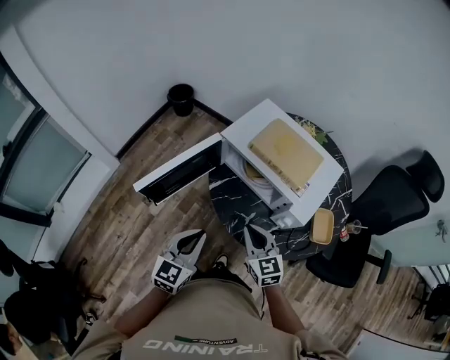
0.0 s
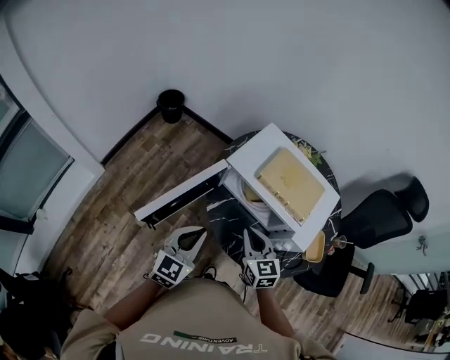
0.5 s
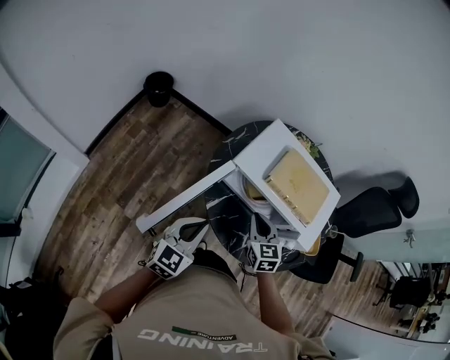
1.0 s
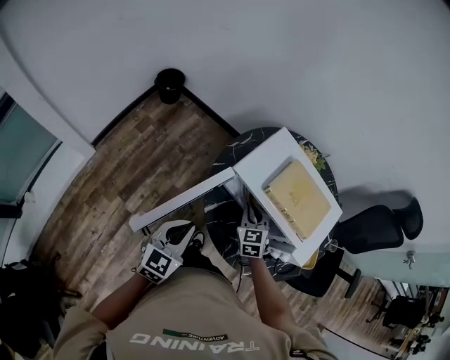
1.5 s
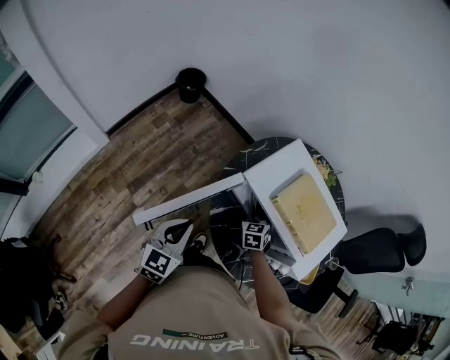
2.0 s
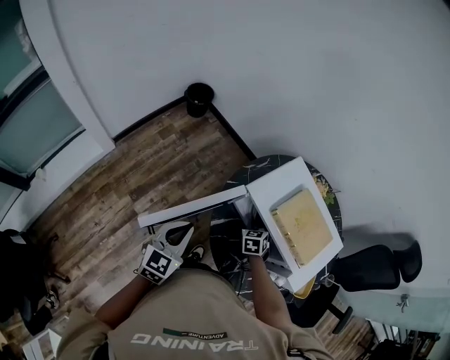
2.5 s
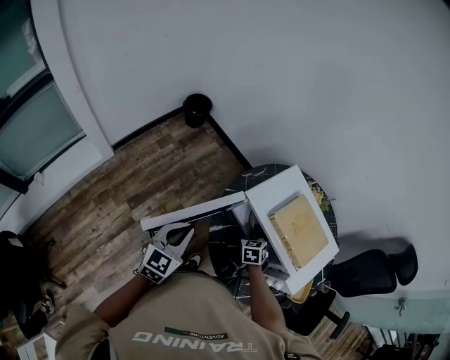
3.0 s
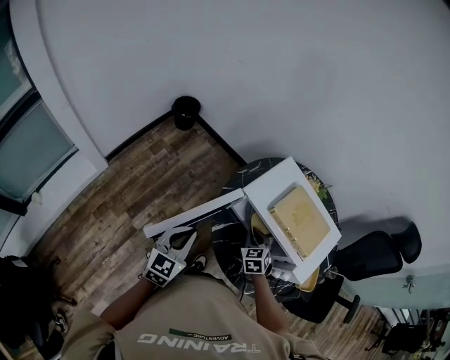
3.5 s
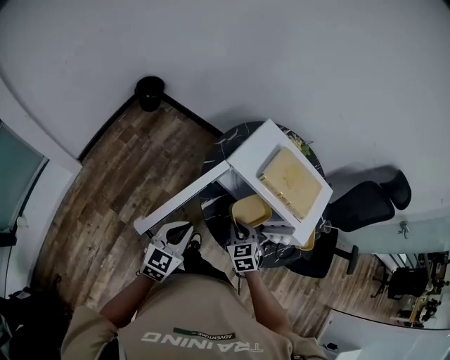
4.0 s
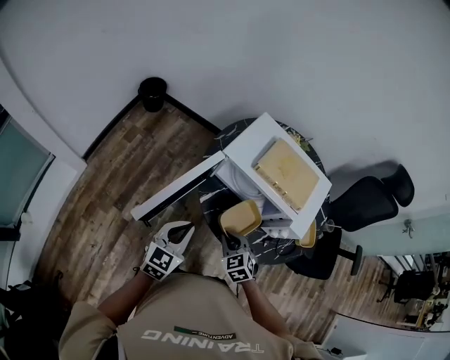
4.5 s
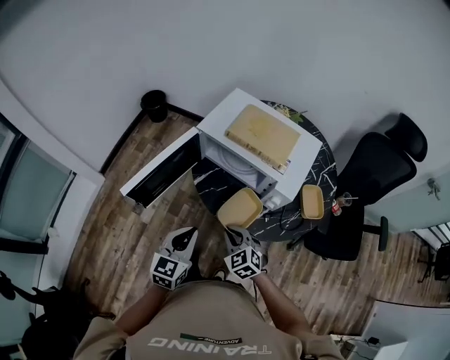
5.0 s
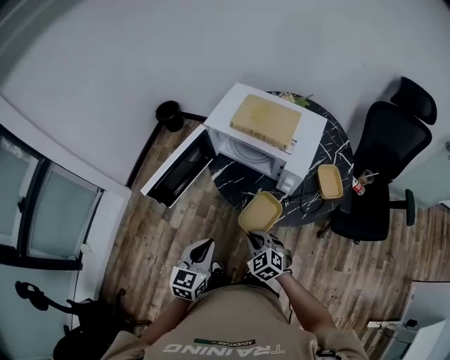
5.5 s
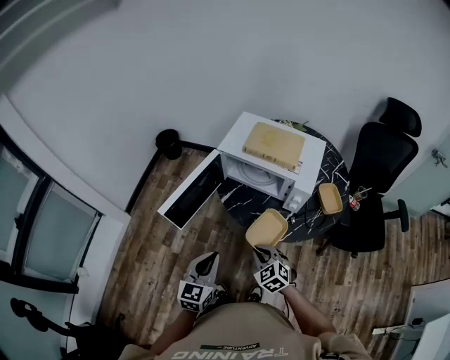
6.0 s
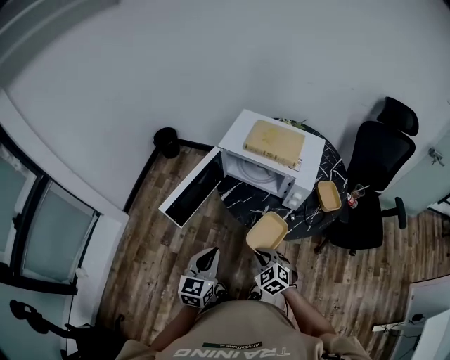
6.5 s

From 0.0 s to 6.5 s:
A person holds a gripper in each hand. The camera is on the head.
From 0.0 s to 2.0 s: The left gripper travels forward and to the left by approximately 20 cm, while the right gripper shifts roughly 25 cm forward and downward, and changes its angle by approximately 30 degrees.
From 2.0 s to 4.5 s: The left gripper shifts approximately 5 cm backward, while the right gripper goes approximately 20 cm backward.
From 4.5 s to 6.5 s: Both grippers move backward, some 15 cm.

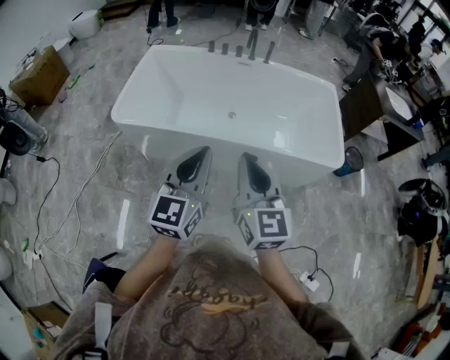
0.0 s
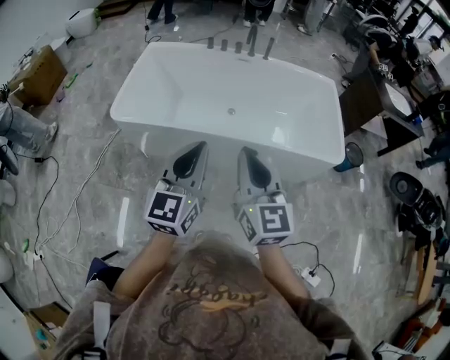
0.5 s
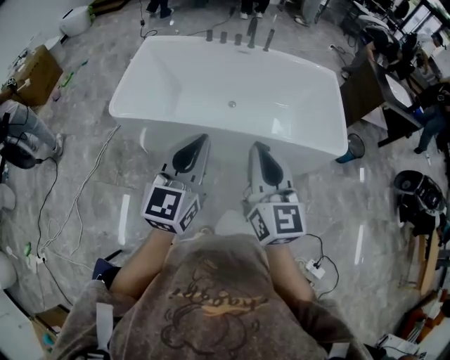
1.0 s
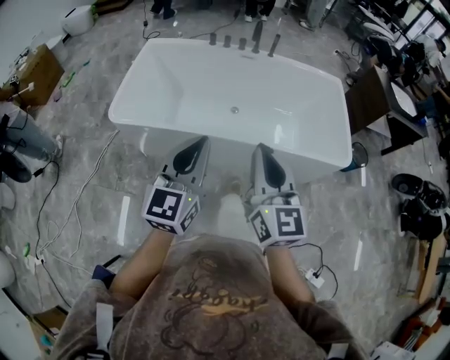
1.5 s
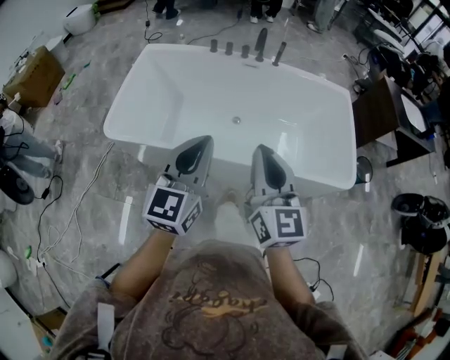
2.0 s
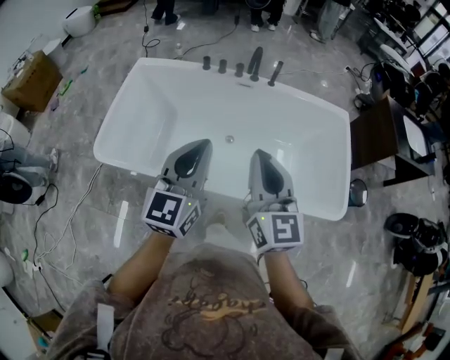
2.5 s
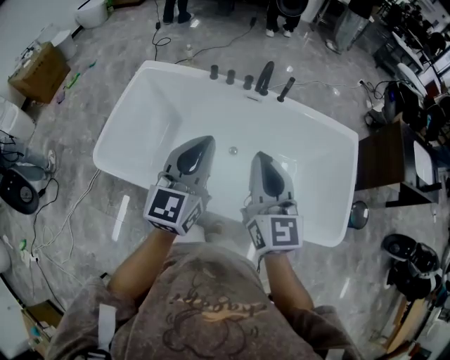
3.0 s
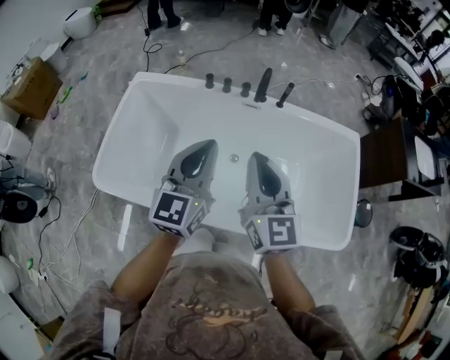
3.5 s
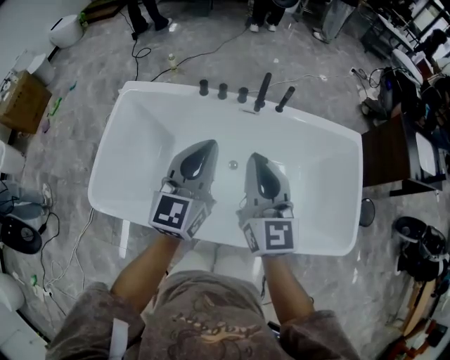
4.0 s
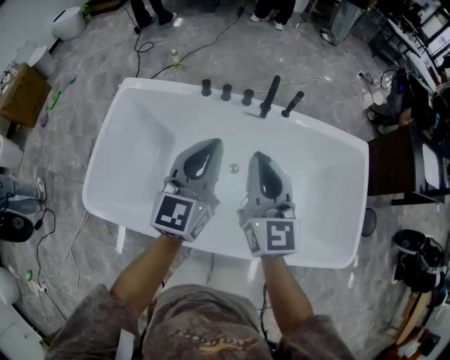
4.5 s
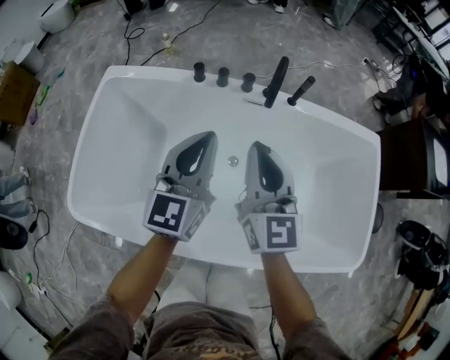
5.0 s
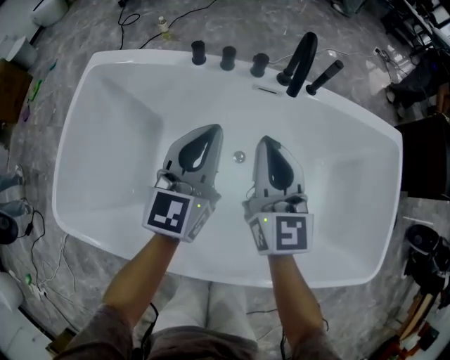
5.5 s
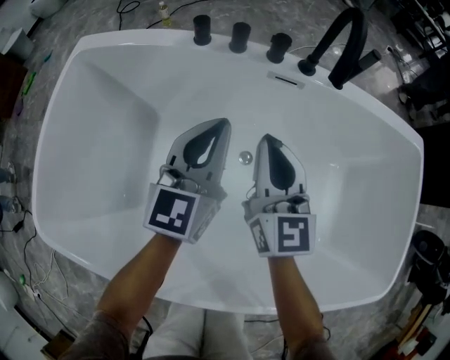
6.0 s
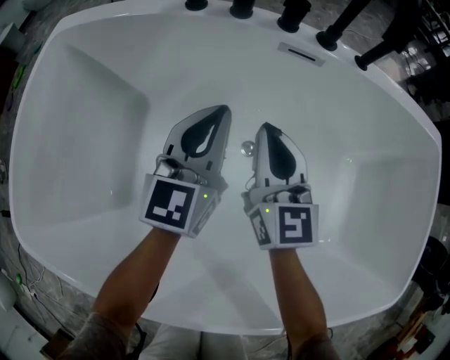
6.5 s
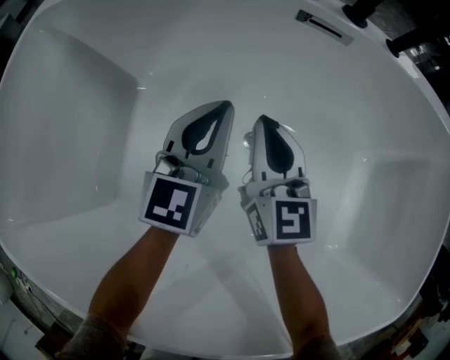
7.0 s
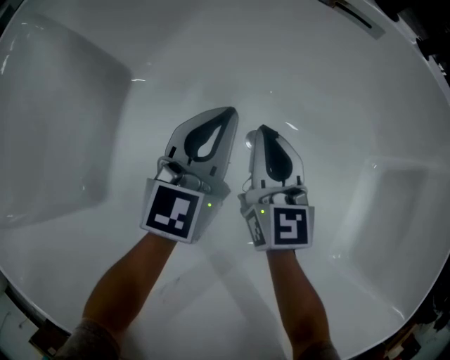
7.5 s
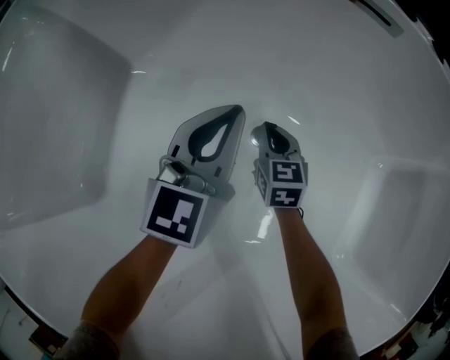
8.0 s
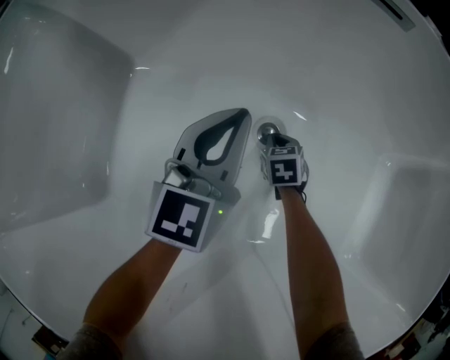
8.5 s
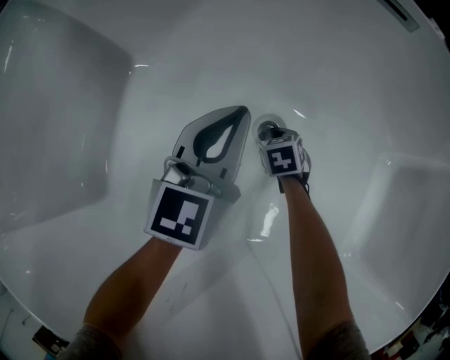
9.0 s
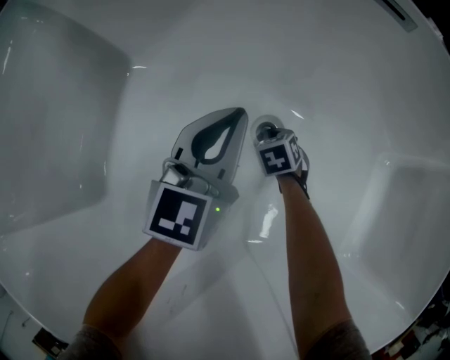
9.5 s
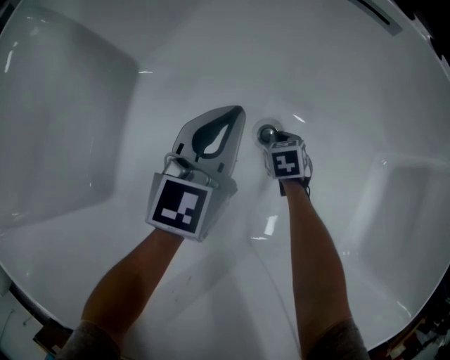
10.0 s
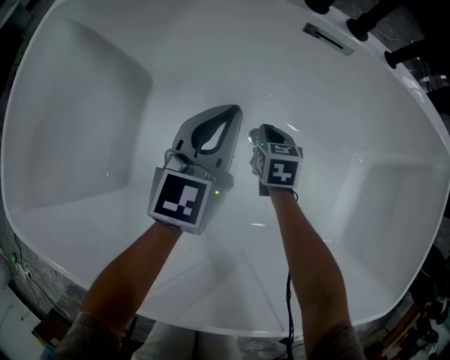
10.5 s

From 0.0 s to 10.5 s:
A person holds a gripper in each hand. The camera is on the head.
From 0.0 s to 2.0 s: Both grippers move forward, approximately 15 cm.
From 2.0 s to 4.0 s: Both grippers move forward, about 35 cm.
From 4.0 s to 6.5 s: Both grippers move downward and forward, roughly 50 cm.
From 6.5 s to 8.5 s: The left gripper travels downward by approximately 20 cm. Meanwhile the right gripper goes some 50 cm downward, and tilts its fingers about 50 degrees downward.
From 8.5 s to 10.5 s: The left gripper heads upward, covering some 15 cm. The right gripper heads upward, covering roughly 20 cm.

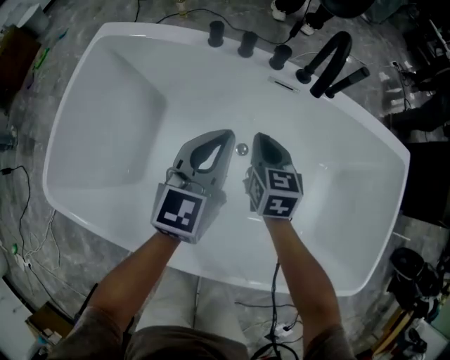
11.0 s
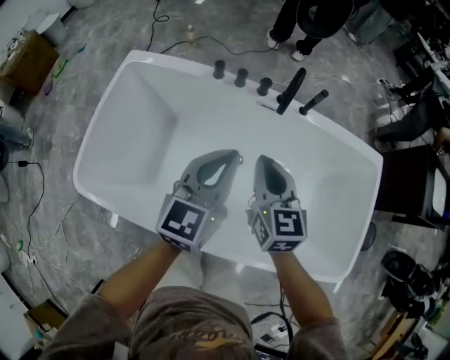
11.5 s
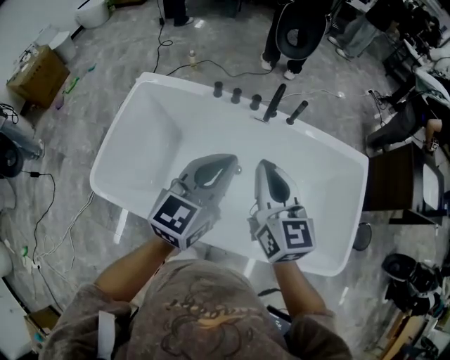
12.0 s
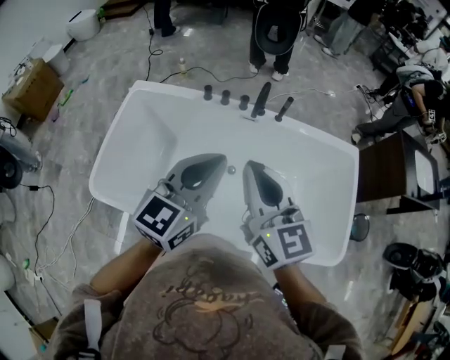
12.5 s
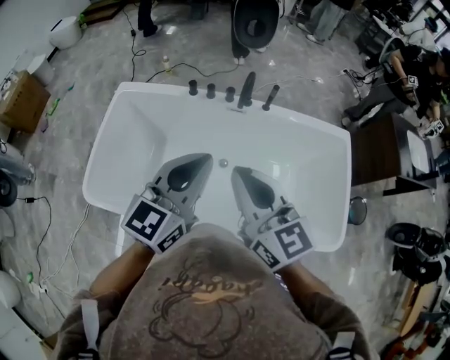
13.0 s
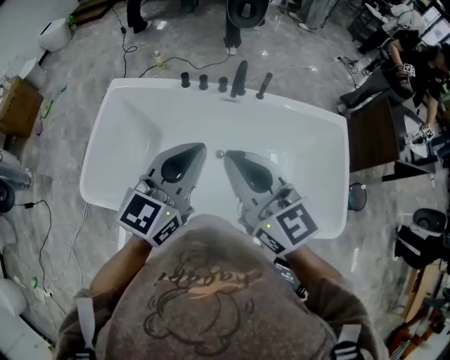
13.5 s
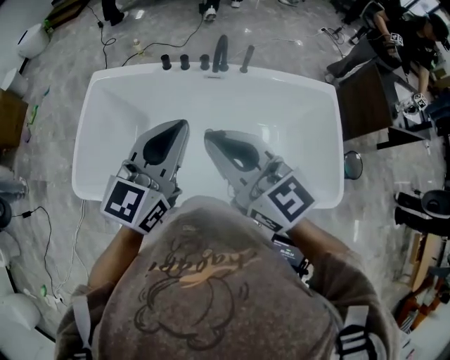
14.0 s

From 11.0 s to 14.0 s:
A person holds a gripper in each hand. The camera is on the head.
From 11.0 s to 12.5 s: The grippers both shift upward and backward by approximately 40 cm. The right gripper angles its fingers upward, by about 30 degrees.
From 12.5 s to 14.0 s: The right gripper changes place by roughly 5 cm.

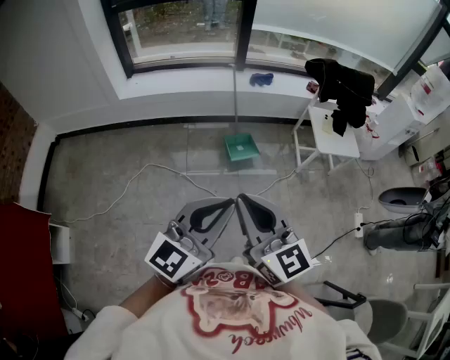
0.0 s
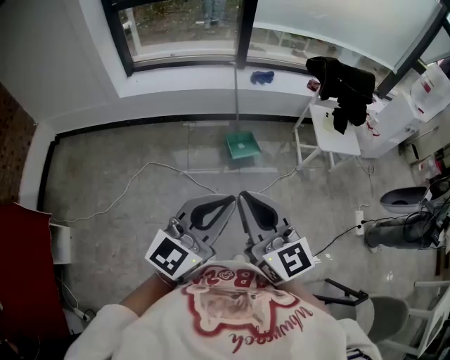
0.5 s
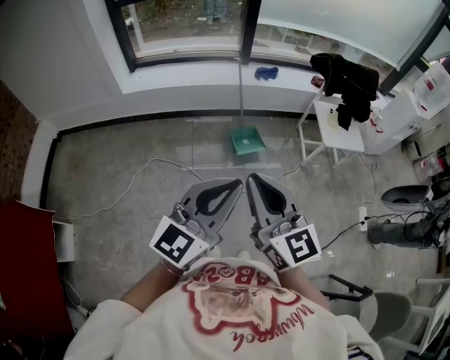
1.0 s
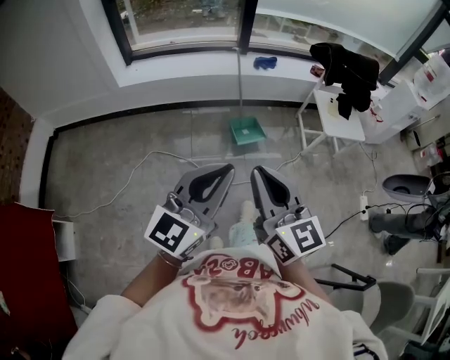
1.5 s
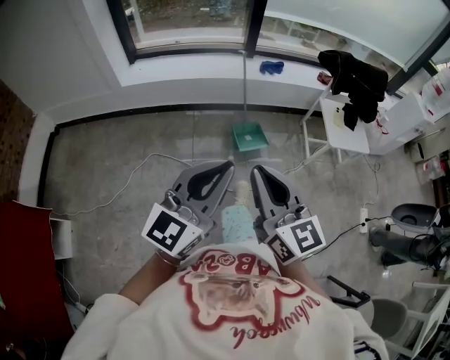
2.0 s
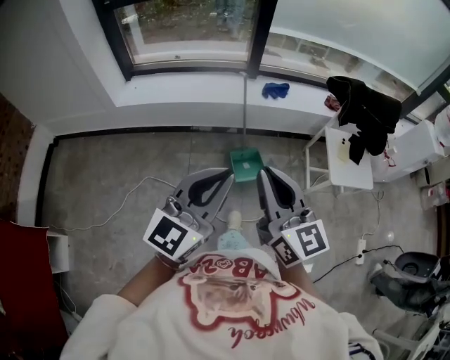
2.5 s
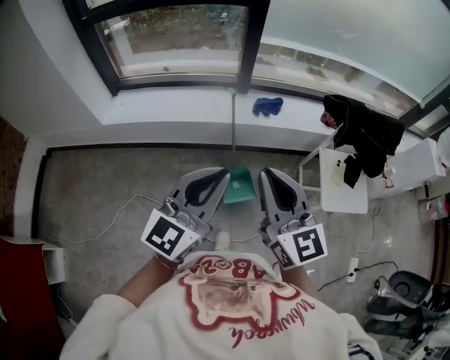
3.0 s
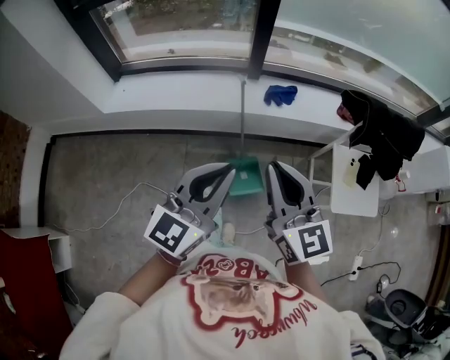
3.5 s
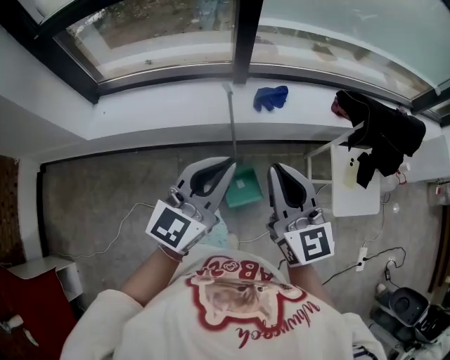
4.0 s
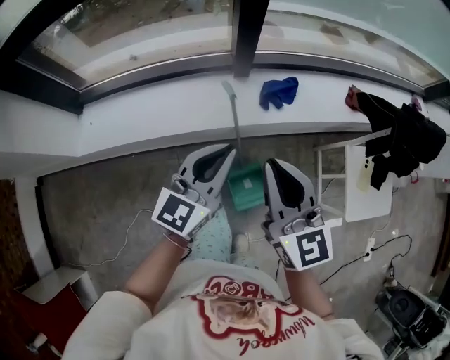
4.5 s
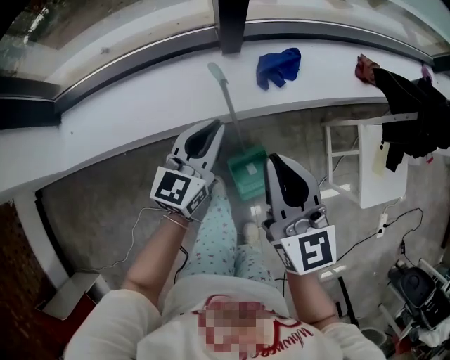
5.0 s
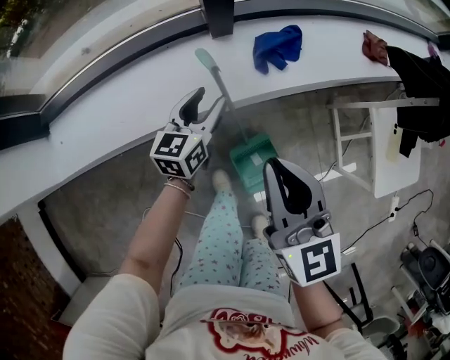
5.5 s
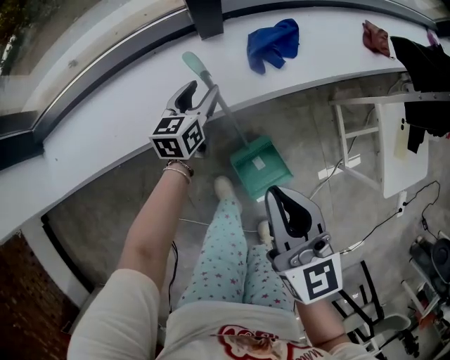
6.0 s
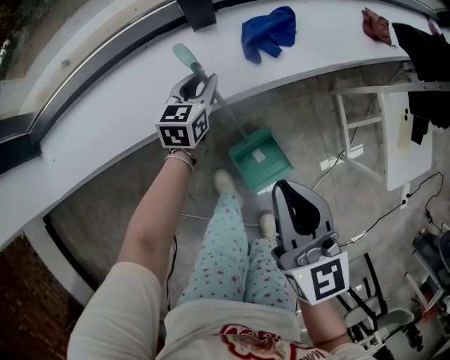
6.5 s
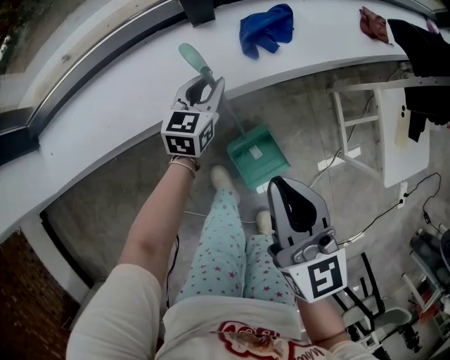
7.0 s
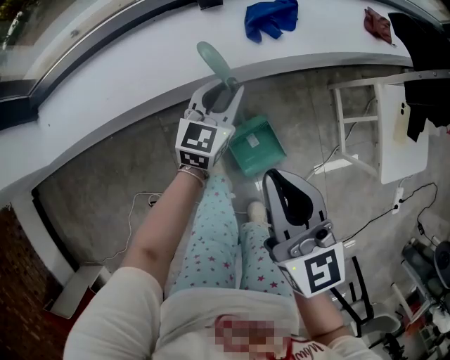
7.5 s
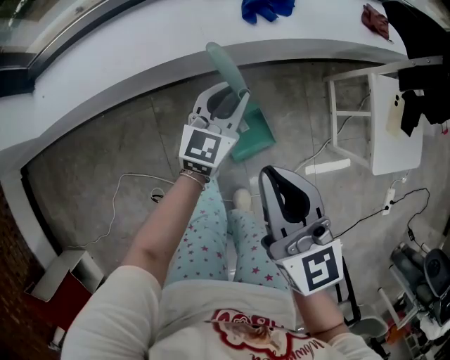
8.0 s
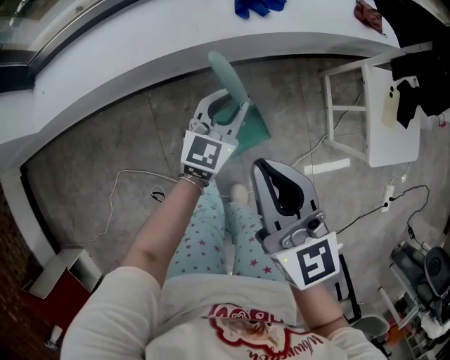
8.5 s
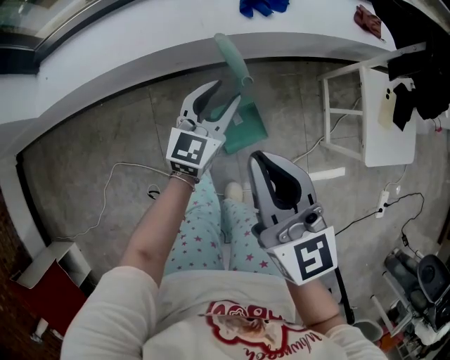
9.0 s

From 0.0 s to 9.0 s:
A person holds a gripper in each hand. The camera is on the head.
From 0.0 s to 2.0 s: The right gripper travels forward by some 10 cm, while the left gripper is displaced forward and to the left by about 10 cm.
From 2.0 s to 4.5 s: The two grippers travel together, forward, about 70 cm.
From 4.5 s to 7.0 s: The left gripper travels downward and forward by approximately 40 cm, rotates roughly 20 degrees, and opens its fingers; the right gripper goes about 20 cm downward, and rotates some 20 degrees.
From 7.0 s to 9.0 s: Both grippers move backward, roughly 20 cm.
